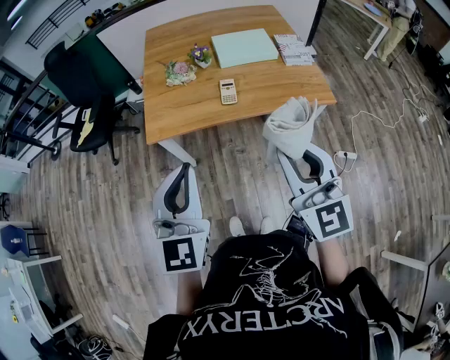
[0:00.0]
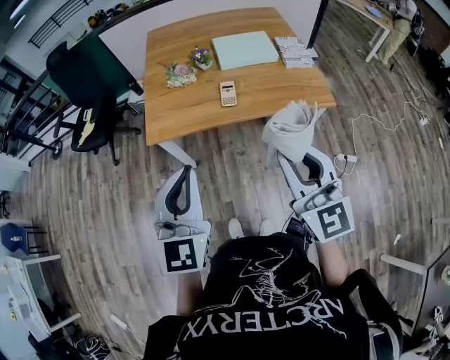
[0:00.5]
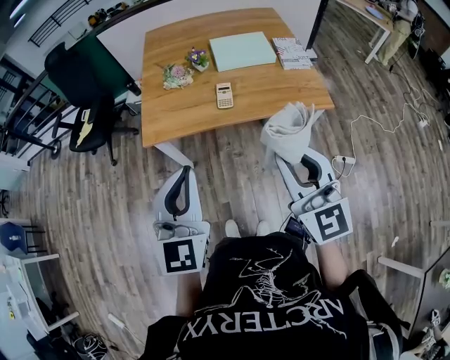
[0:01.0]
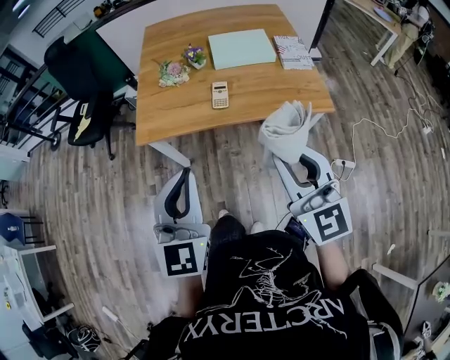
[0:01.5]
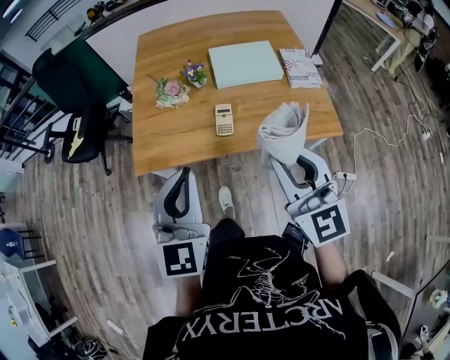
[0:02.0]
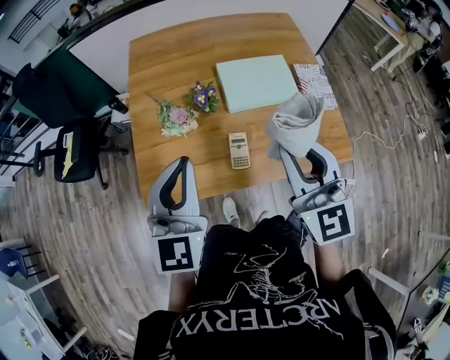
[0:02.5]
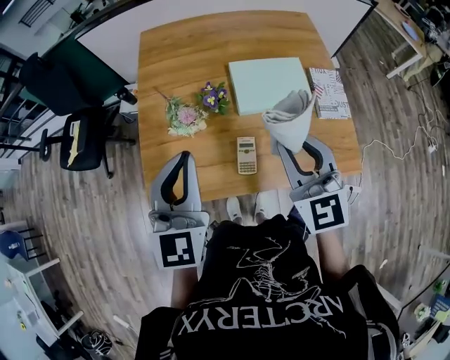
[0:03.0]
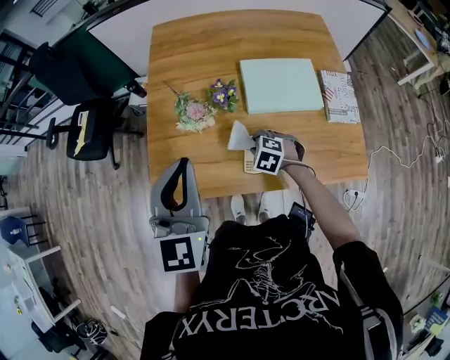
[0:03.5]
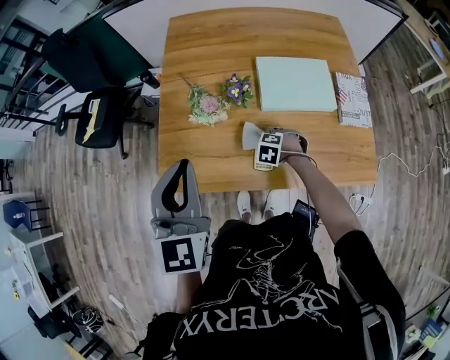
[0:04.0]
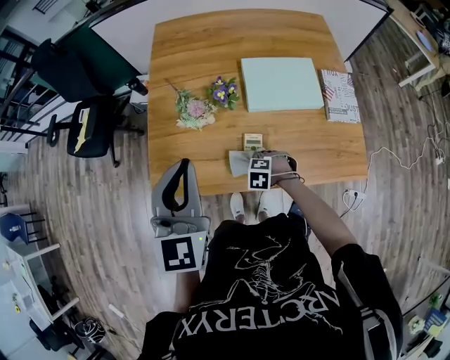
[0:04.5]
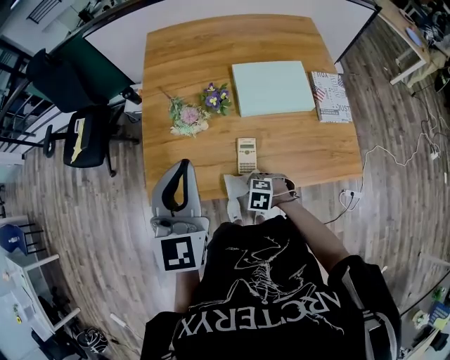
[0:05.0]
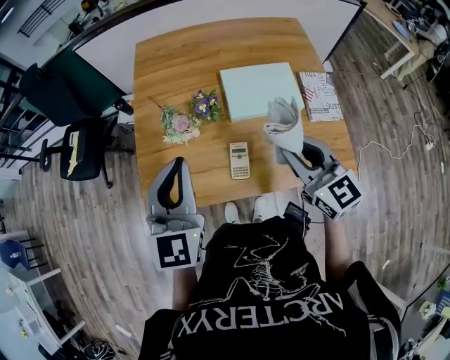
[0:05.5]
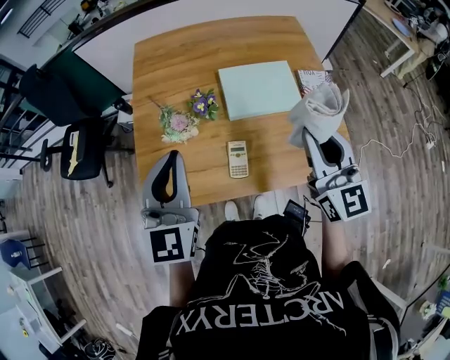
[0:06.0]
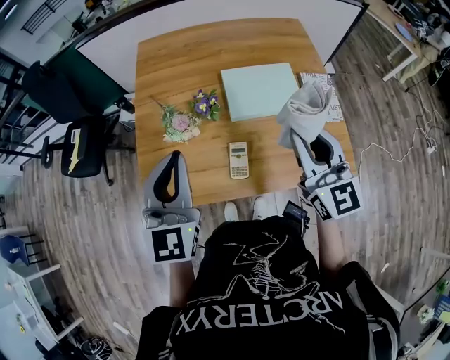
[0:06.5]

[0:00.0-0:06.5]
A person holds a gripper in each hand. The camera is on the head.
0:00.0 to 0:02.0: The two grippers go some 15 cm forward.
0:02.0 to 0:04.5: The right gripper travels downward by about 40 cm, and angles its fingers downward, by some 80 degrees; the left gripper ends up some 25 cm from where it was.
0:04.5 to 0:06.5: The right gripper travels upward by about 40 cm, and points its fingers approximately 80 degrees further upward.

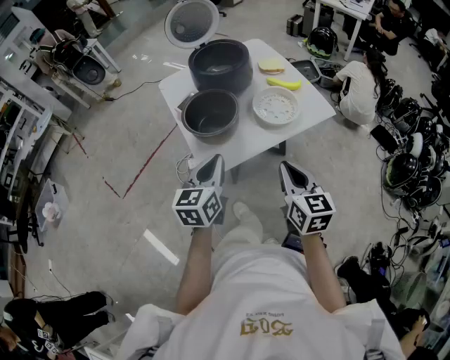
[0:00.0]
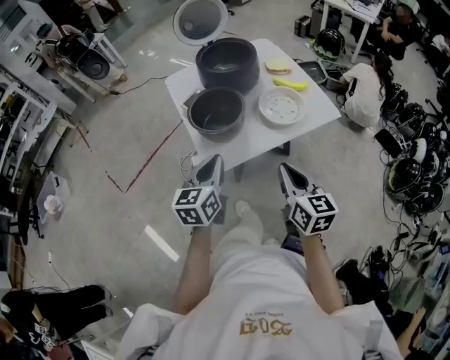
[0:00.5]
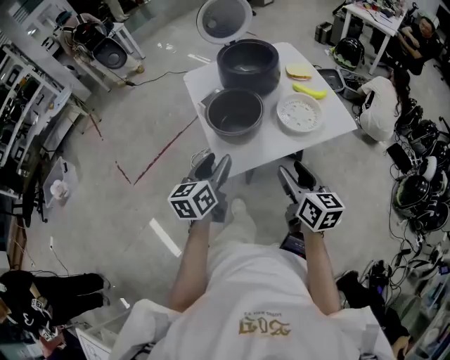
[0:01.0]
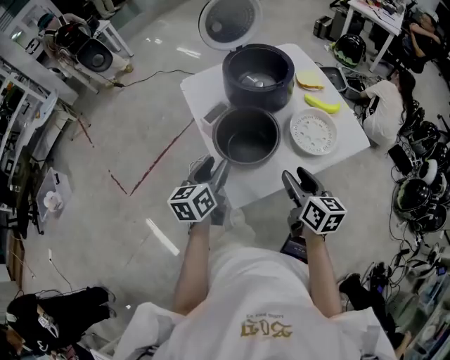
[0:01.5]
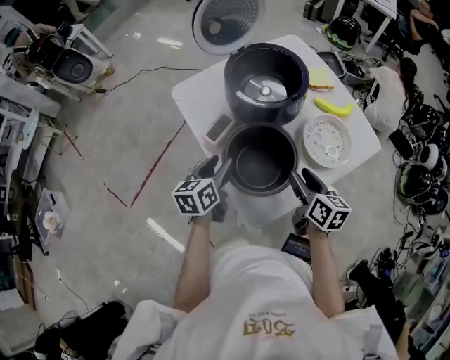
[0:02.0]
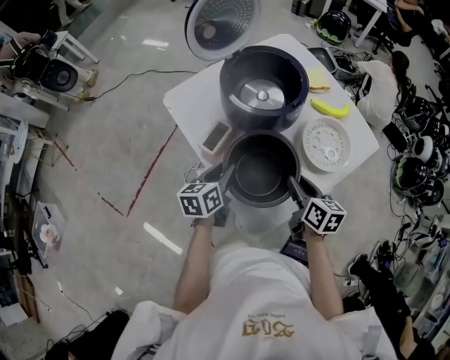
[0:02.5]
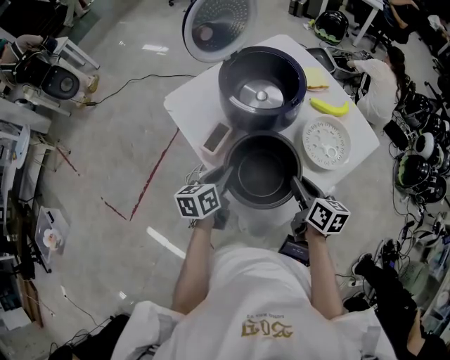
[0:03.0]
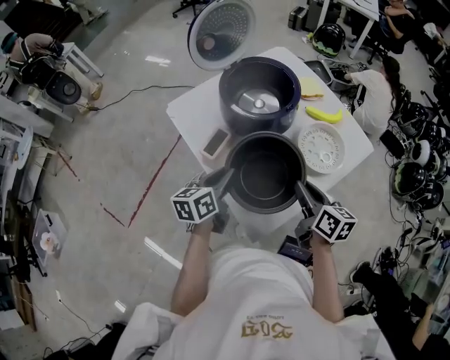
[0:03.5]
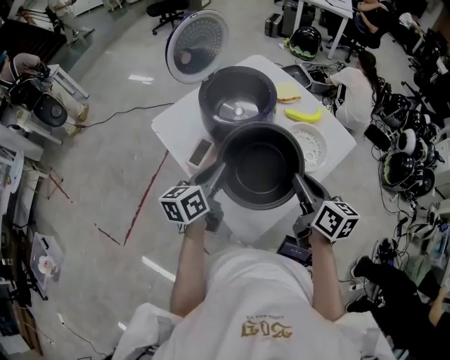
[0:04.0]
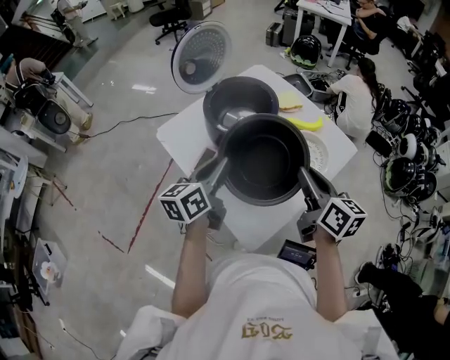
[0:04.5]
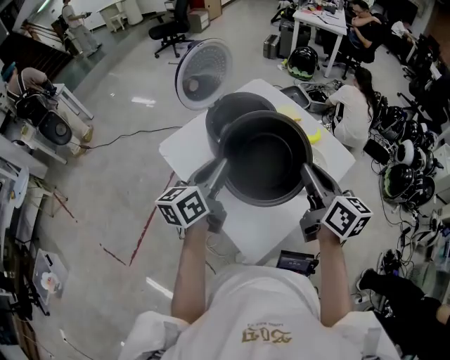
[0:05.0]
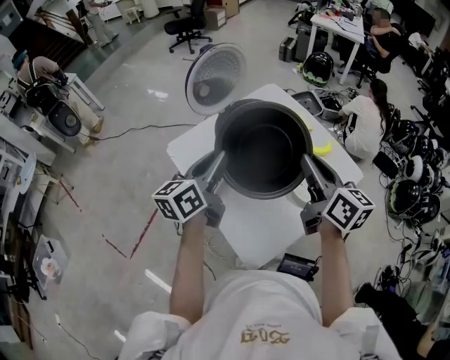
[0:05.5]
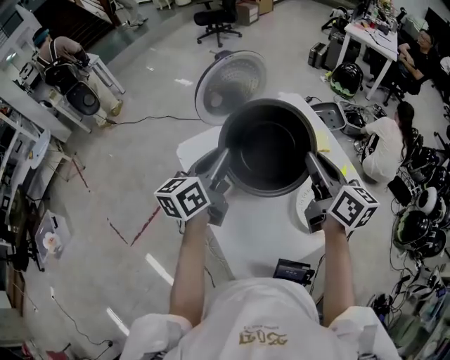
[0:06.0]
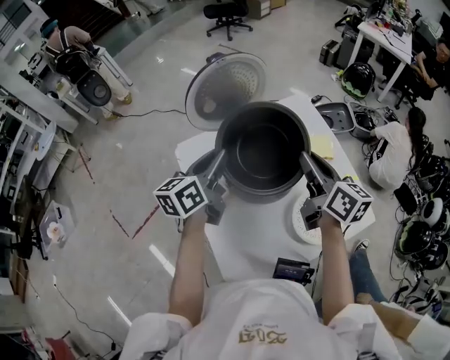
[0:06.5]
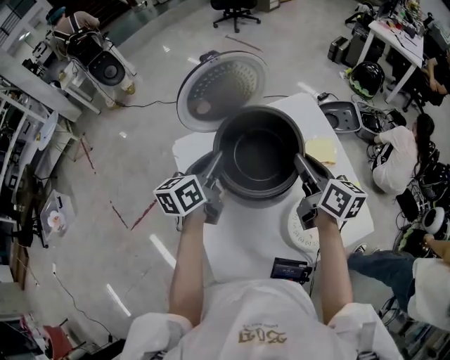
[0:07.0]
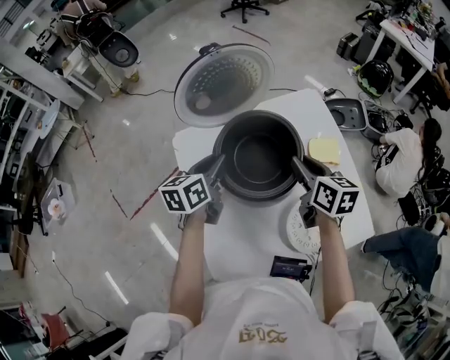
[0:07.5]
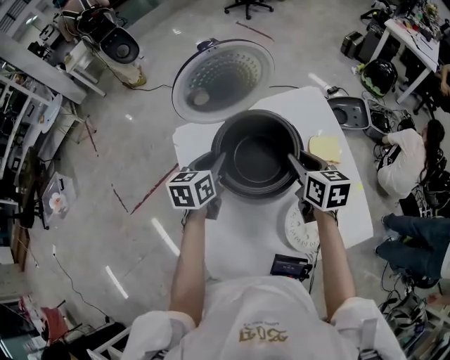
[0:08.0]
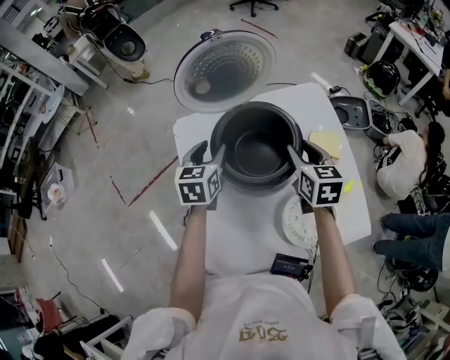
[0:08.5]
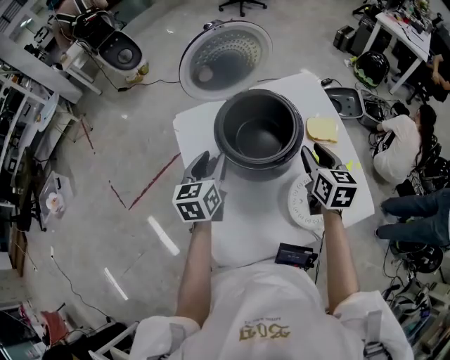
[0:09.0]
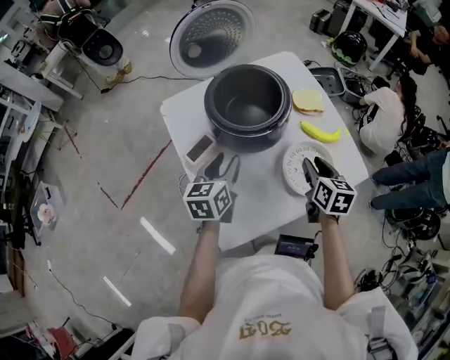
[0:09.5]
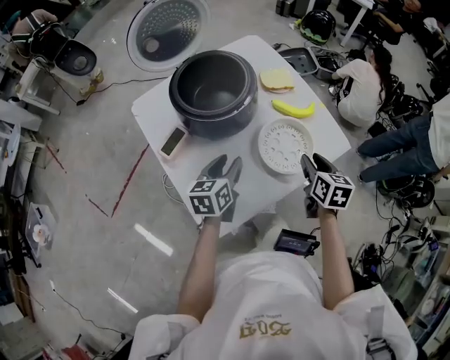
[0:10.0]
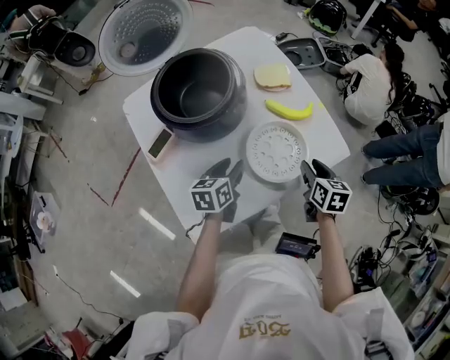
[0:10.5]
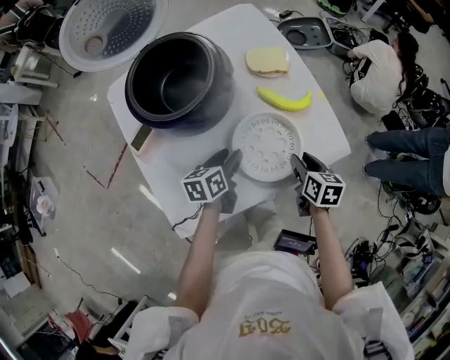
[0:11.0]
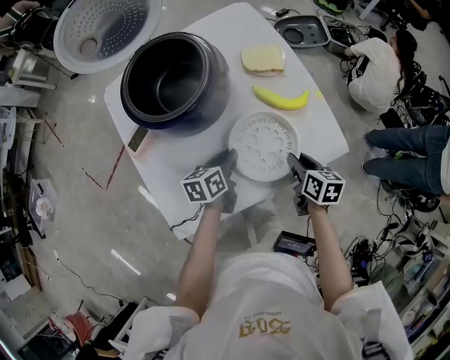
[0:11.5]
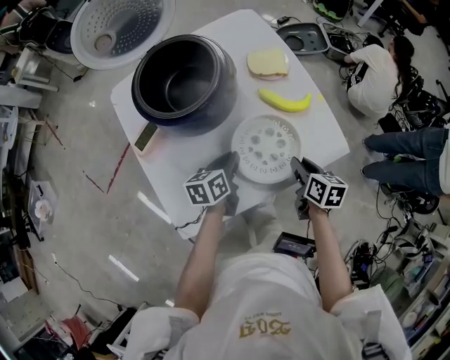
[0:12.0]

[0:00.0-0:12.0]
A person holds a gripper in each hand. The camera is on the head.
0:00.0 to 0:02.0: Both grippers travel together forward, to the left and downward, some 35 cm. The left gripper swivels some 20 degrees, and opens up. The right gripper changes its angle by roughly 30 degrees, and opens.
0:02.0 to 0:04.0: The right gripper shifts some 10 cm upward, and closes its fingers, while the left gripper travels upward and to the right by roughly 10 cm, and closes its fingers.
0:04.0 to 0:06.0: Both grippers move forward and upward, some 20 cm.
0:06.0 to 0:08.0: Both grippers move downward and forward, approximately 20 cm. The right gripper turns by about 30 degrees, while the left gripper swivels some 30 degrees.
0:08.0 to 0:10.0: The right gripper shifts by about 30 cm, and changes its angle by roughly 30 degrees, while the left gripper ends up about 25 cm from where it was.
0:10.0 to 0:12.0: The left gripper travels downward and to the right by roughly 15 cm, and closes its fingers. The right gripper heads downward, covering some 10 cm.

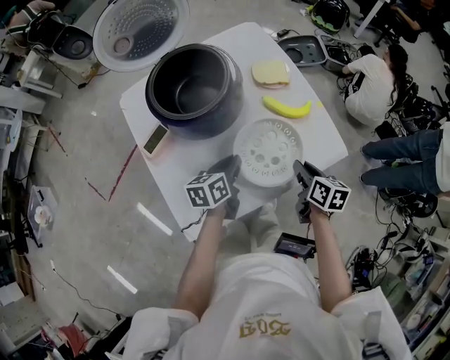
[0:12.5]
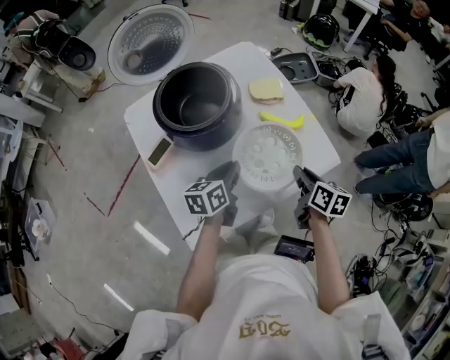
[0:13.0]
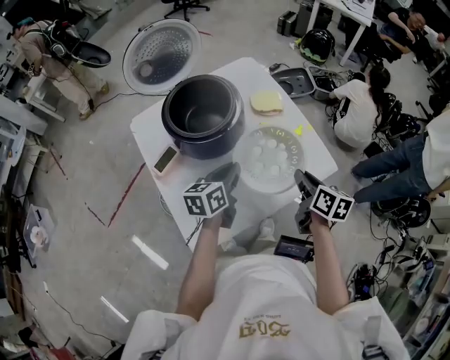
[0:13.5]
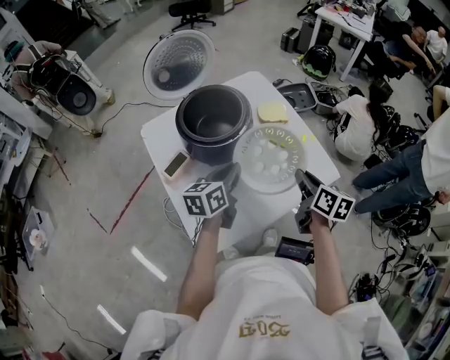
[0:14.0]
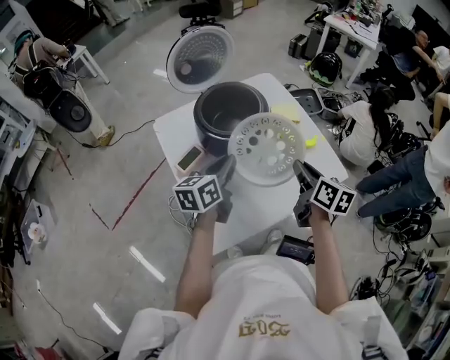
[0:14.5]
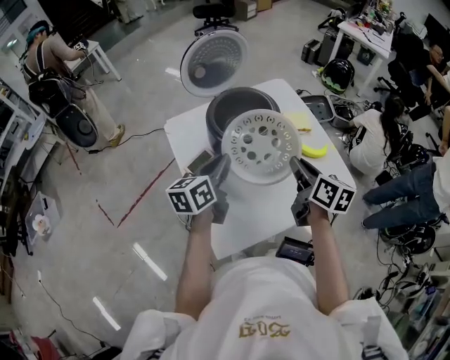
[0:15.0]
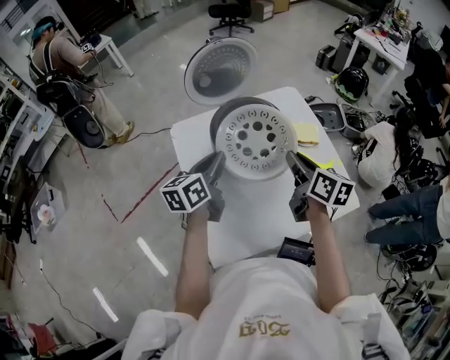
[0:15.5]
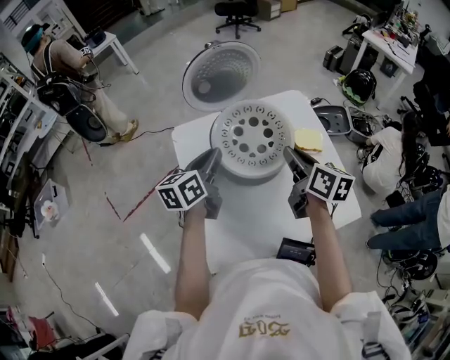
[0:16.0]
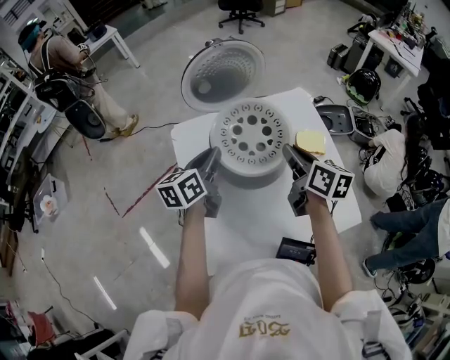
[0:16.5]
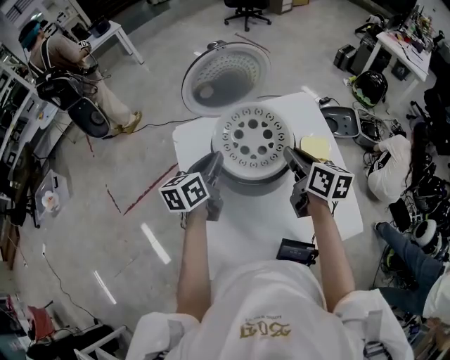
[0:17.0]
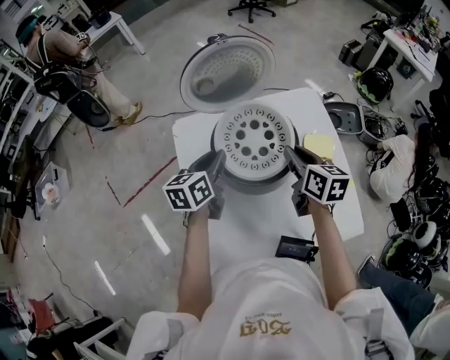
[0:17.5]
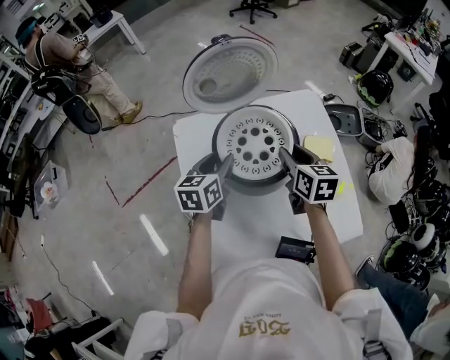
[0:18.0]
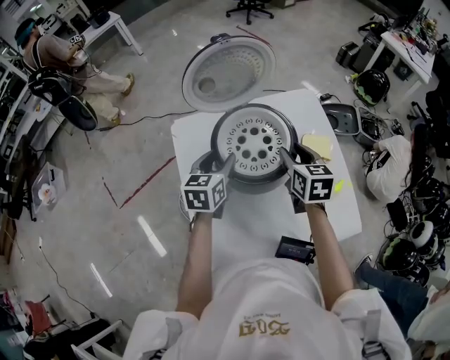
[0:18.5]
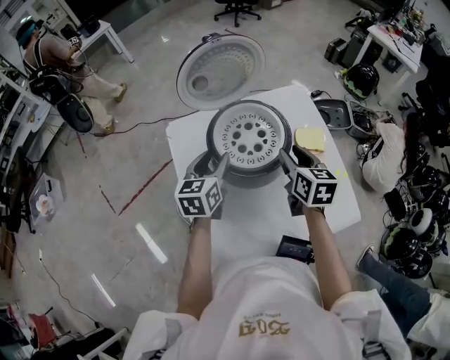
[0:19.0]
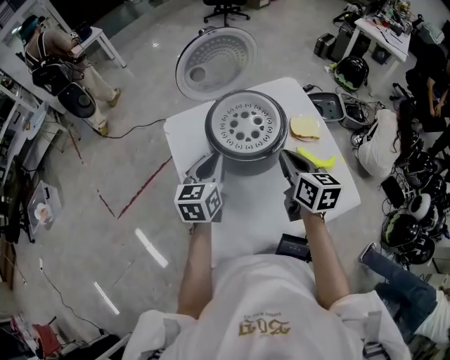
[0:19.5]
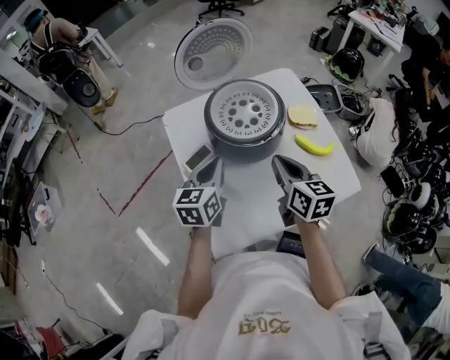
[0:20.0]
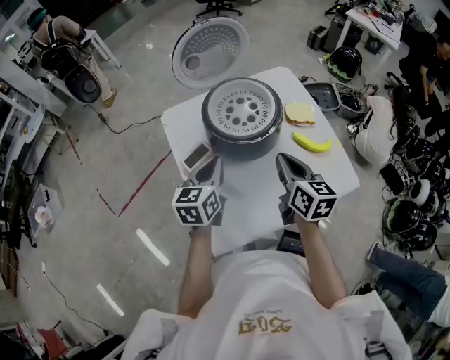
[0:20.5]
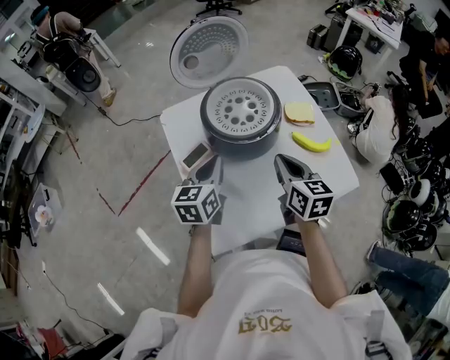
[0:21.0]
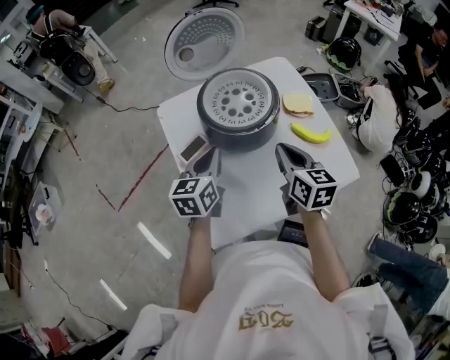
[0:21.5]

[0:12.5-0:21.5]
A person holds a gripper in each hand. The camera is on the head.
0:12.5 to 0:14.5: The grippers both shift upward and to the left by approximately 20 cm. The left gripper turns by about 20 degrees.
0:14.5 to 0:17.0: The left gripper heads forward and to the left, covering approximately 15 cm. The right gripper moves forward, some 20 cm, and changes its angle by roughly 20 degrees.
0:17.0 to 0:19.5: The grippers both shift backward by approximately 10 cm. The left gripper changes its angle by roughly 20 degrees, and opens and closes again. The right gripper opens, then closes once more.
0:19.5 to 0:21.5: Both grippers travel together backward, roughly 5 cm.
